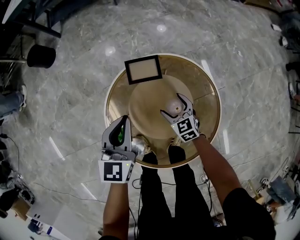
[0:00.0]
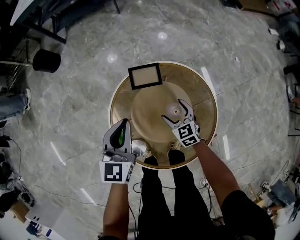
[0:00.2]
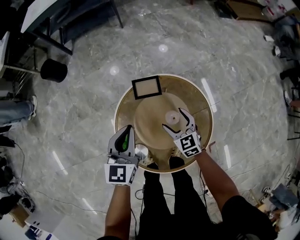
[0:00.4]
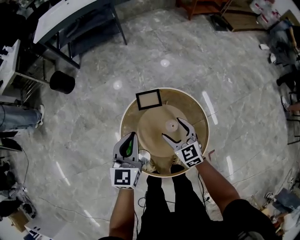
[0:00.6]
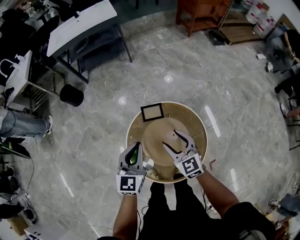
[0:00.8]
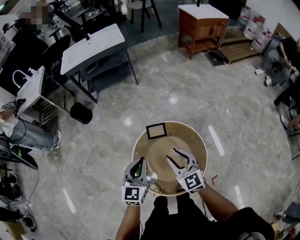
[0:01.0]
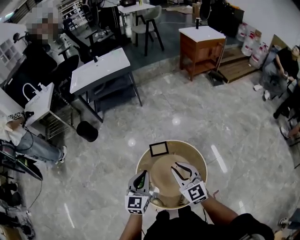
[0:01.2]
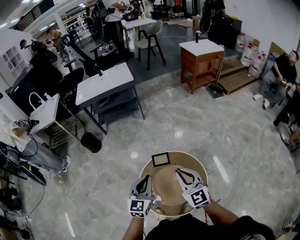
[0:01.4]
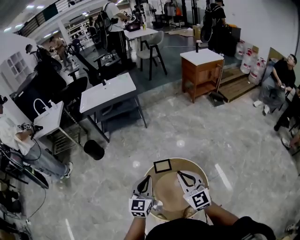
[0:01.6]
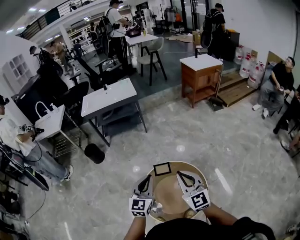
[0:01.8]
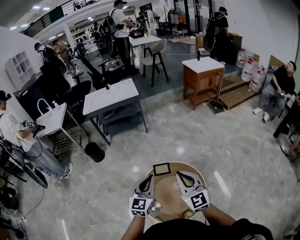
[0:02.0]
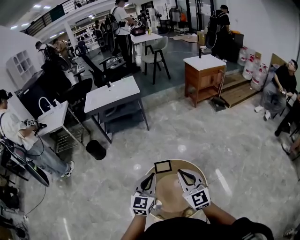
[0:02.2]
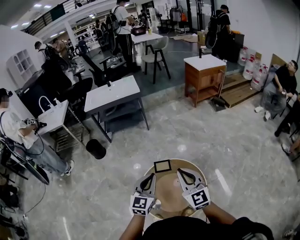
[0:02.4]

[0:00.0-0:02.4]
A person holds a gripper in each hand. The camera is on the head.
0:00.0 to 0:01.2: The right gripper is displaced upward by some 50 cm, tips its fingers upward by approximately 30 degrees, and closes its fingers; the left gripper heads upward, covering approximately 25 cm.
0:01.2 to 0:02.4: The grippers both shift upward by approximately 10 cm.

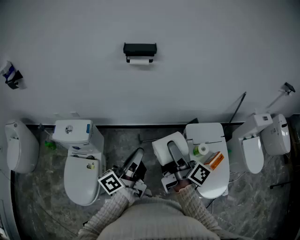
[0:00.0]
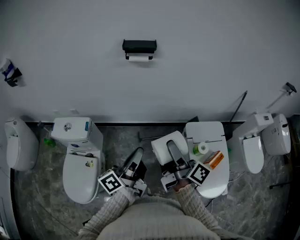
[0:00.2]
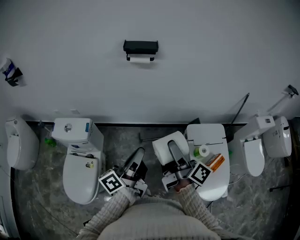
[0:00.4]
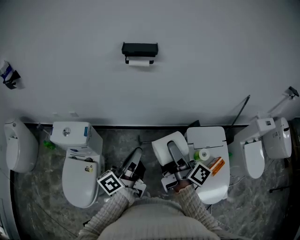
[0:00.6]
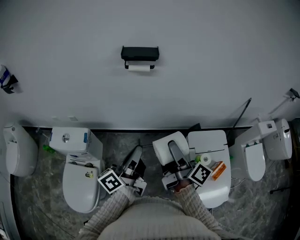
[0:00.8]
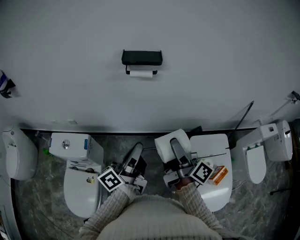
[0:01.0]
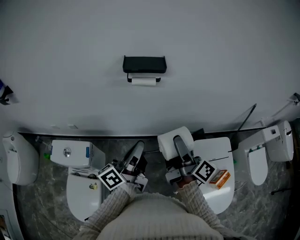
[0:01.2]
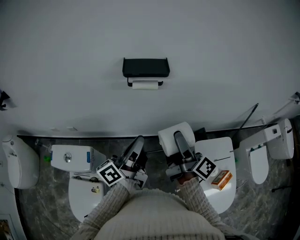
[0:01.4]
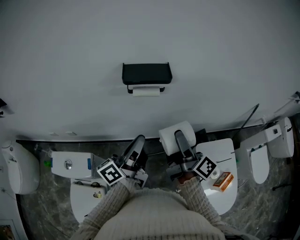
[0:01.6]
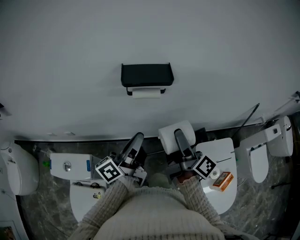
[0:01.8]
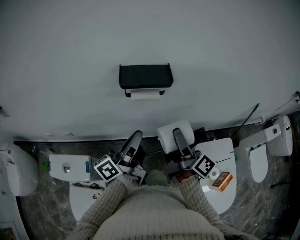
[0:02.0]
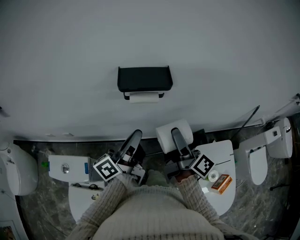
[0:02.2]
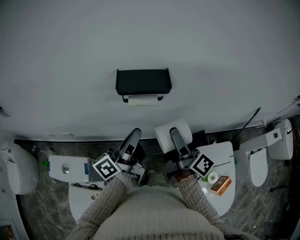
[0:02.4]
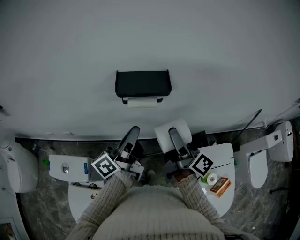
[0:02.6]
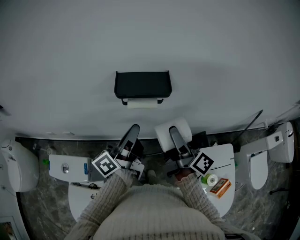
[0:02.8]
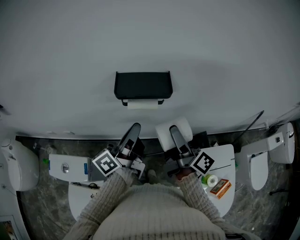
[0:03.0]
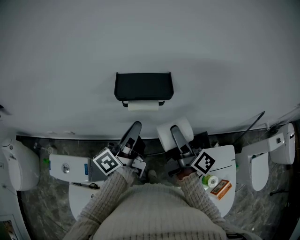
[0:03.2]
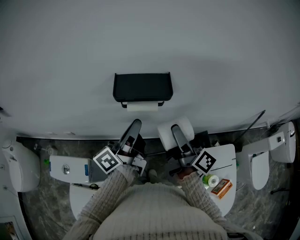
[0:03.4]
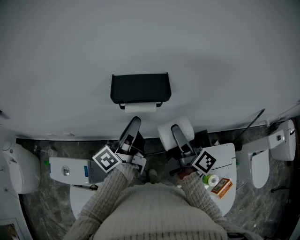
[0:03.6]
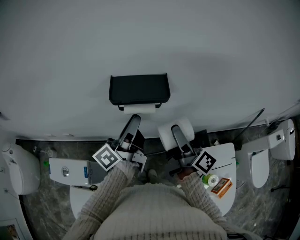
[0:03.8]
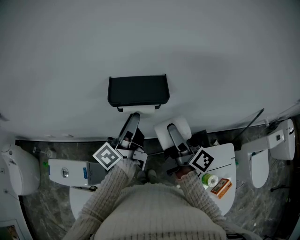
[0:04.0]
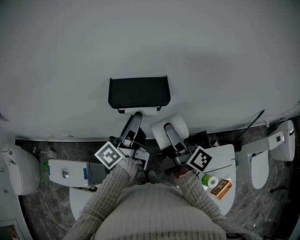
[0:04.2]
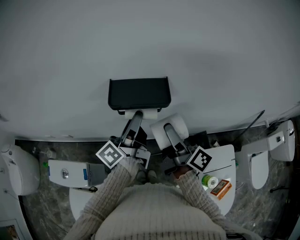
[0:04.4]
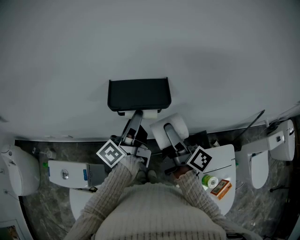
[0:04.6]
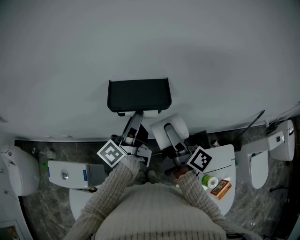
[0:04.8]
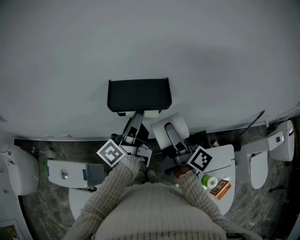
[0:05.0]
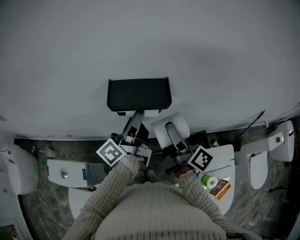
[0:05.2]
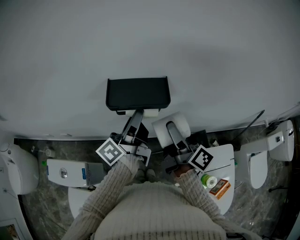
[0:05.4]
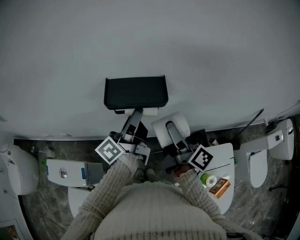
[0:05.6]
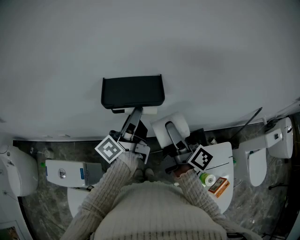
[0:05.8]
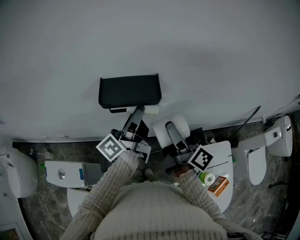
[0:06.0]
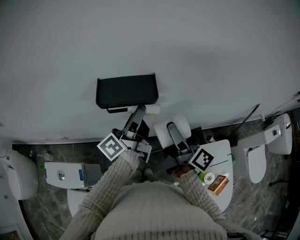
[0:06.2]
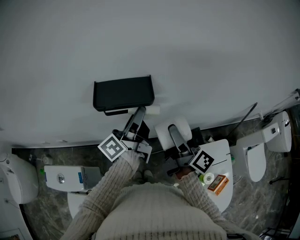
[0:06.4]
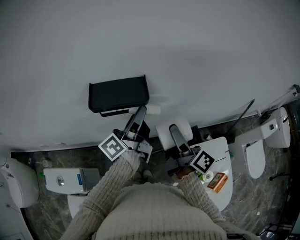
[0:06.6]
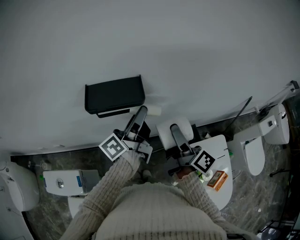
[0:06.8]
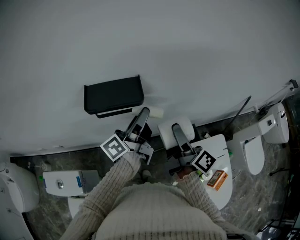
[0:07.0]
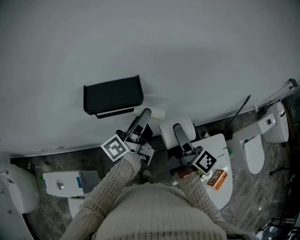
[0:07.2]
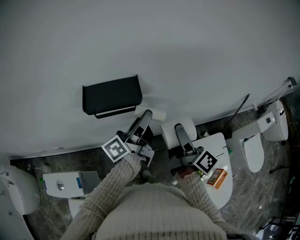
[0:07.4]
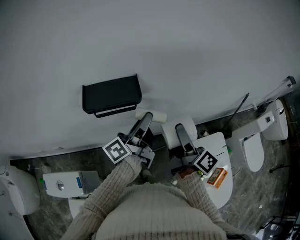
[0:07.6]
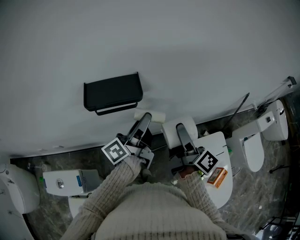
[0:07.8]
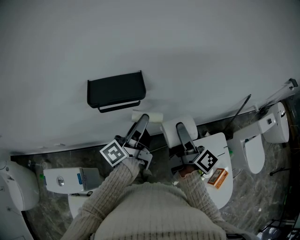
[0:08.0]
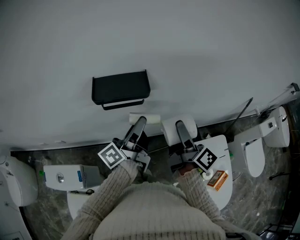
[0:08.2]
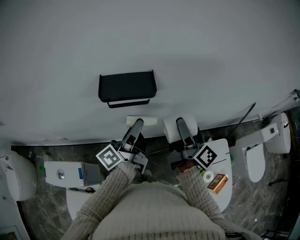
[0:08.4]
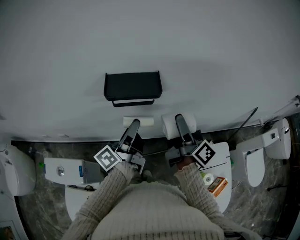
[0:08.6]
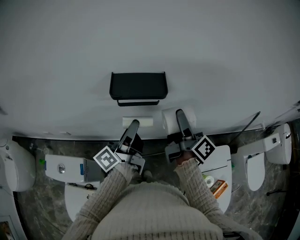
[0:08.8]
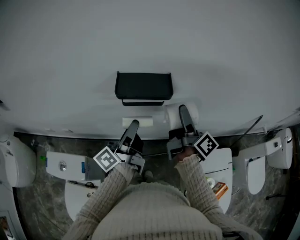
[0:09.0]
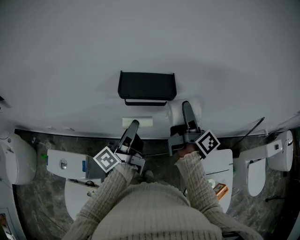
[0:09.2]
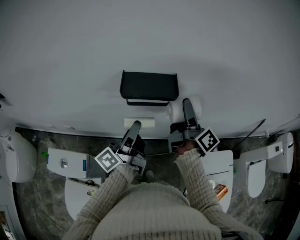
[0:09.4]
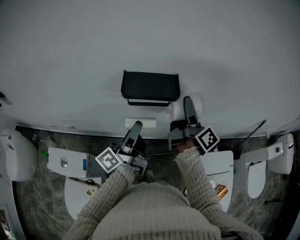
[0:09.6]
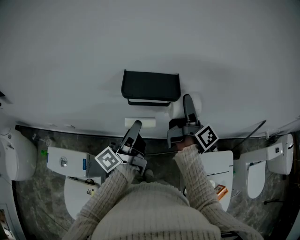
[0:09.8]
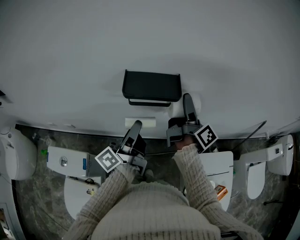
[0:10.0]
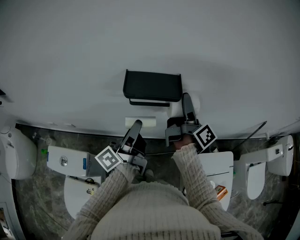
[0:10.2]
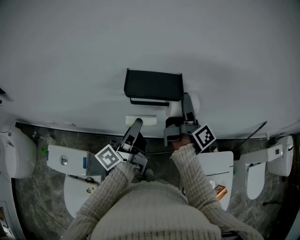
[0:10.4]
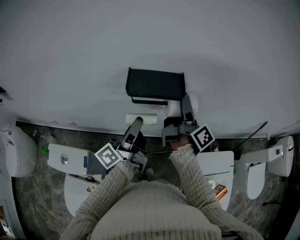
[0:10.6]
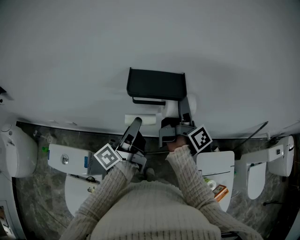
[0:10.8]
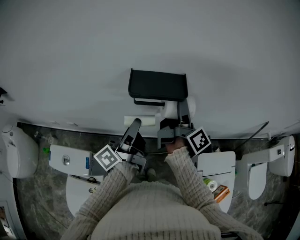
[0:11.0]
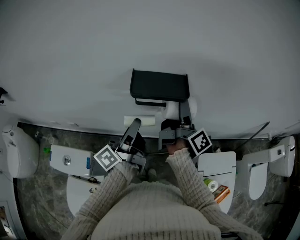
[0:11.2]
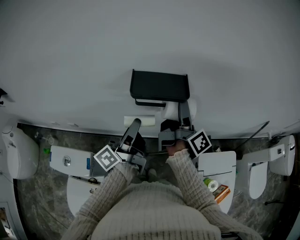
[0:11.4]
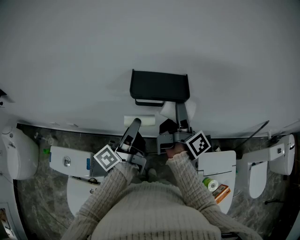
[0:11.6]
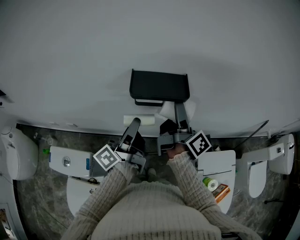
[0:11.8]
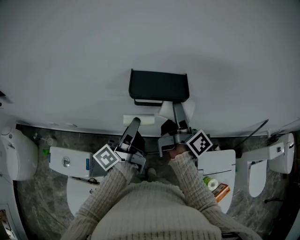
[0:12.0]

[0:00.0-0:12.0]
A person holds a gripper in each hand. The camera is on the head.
0:00.0 to 0:01.6: The grippers both shift forward by some 30 cm.
0:01.6 to 0:03.0: Both grippers move forward, some 10 cm.
0:03.0 to 0:04.4: The left gripper goes approximately 5 cm forward, and opens up.
0:04.4 to 0:06.0: The grippers stay close to where they were, moving slightly.
0:06.0 to 0:07.6: Both grippers move to the right, about 10 cm.
0:07.6 to 0:09.0: The right gripper moves to the left and forward, about 10 cm, while the left gripper shifts about 15 cm to the left and backward.
0:09.0 to 0:10.4: There are only small adjustments of the grippers.
0:10.4 to 0:12.0: The right gripper moves about 5 cm.

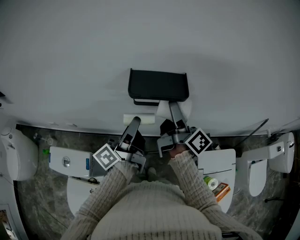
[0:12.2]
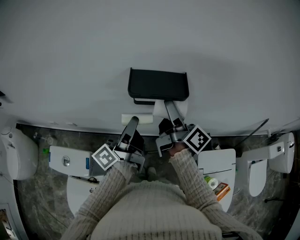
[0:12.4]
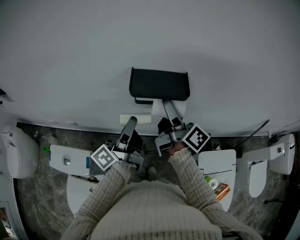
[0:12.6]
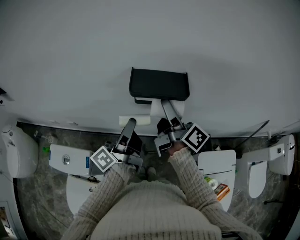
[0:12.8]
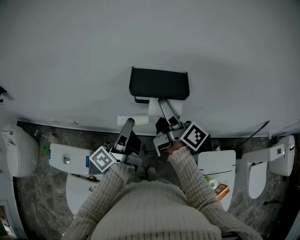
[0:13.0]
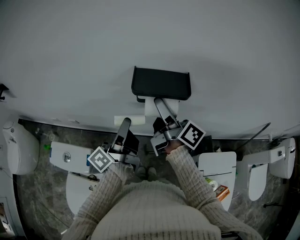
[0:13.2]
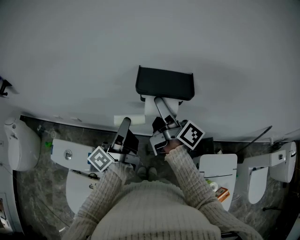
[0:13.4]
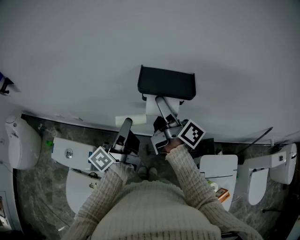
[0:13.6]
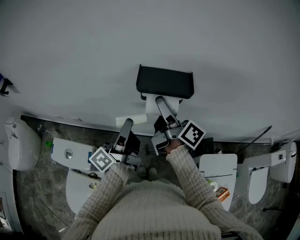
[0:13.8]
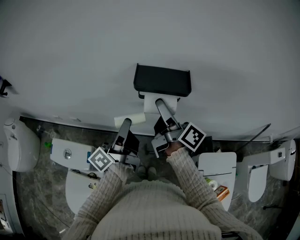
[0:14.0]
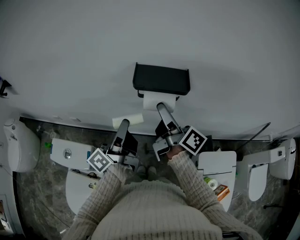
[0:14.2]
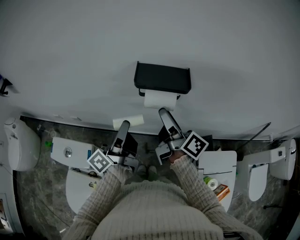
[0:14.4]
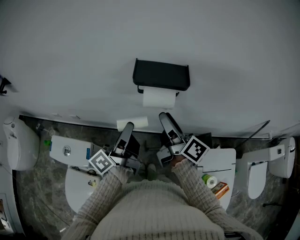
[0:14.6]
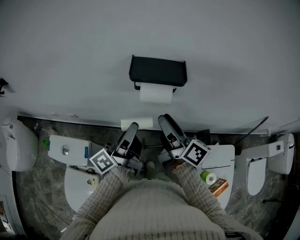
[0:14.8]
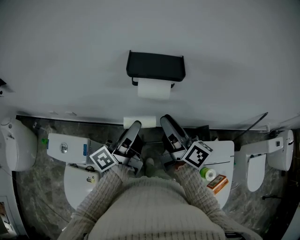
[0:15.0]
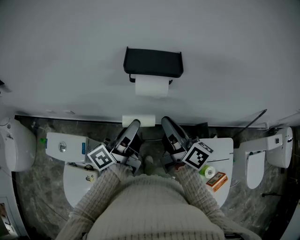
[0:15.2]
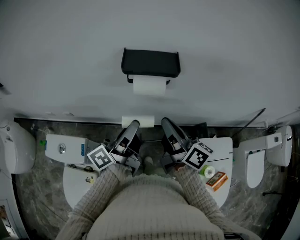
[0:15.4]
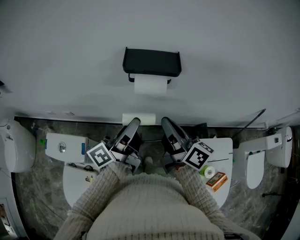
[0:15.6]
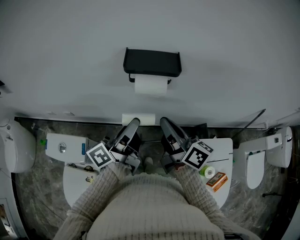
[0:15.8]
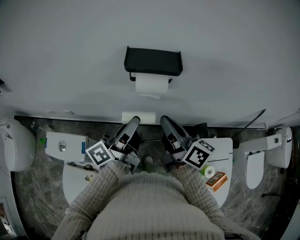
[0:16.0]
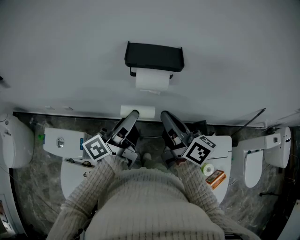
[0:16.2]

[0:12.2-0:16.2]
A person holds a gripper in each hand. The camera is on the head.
0:12.2 to 0:13.6: The right gripper heads to the left, covering about 5 cm, while the left gripper moves roughly 5 cm.
0:13.6 to 0:14.8: The left gripper shifts by approximately 5 cm, while the right gripper heads backward, covering roughly 10 cm, and closes its fingers.
0:14.8 to 0:16.2: The right gripper closes its fingers.

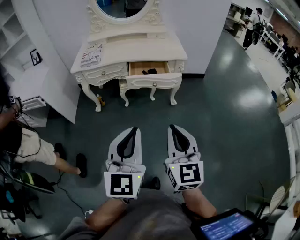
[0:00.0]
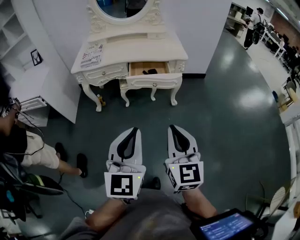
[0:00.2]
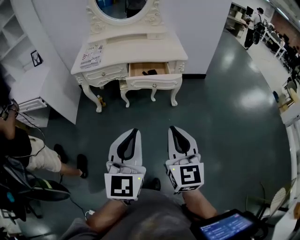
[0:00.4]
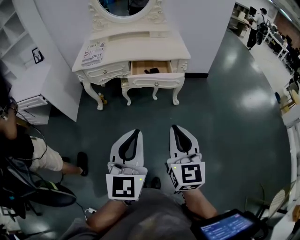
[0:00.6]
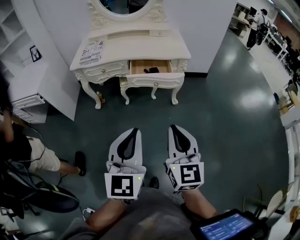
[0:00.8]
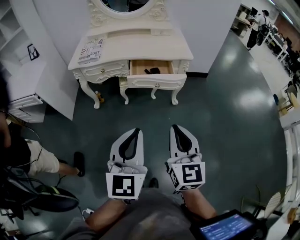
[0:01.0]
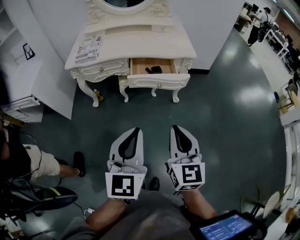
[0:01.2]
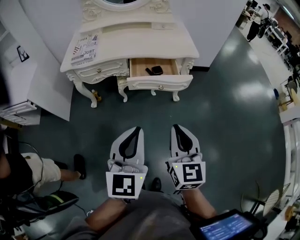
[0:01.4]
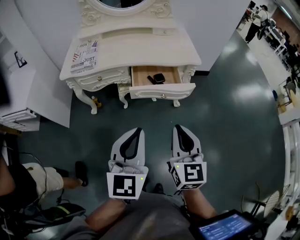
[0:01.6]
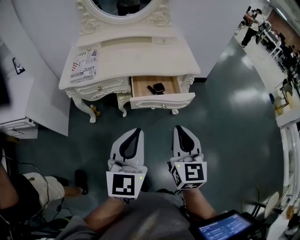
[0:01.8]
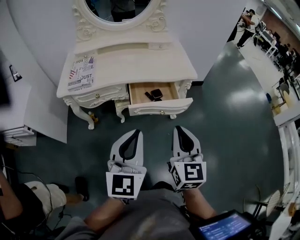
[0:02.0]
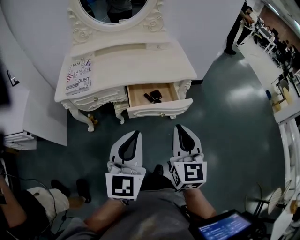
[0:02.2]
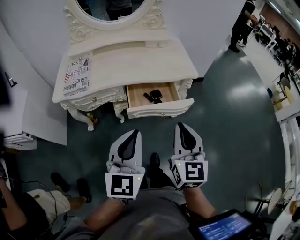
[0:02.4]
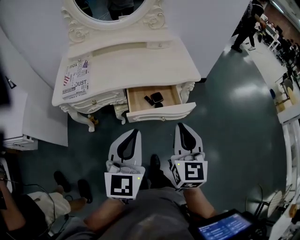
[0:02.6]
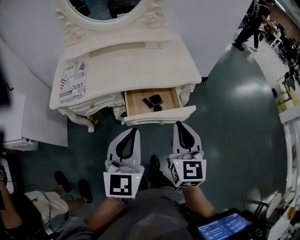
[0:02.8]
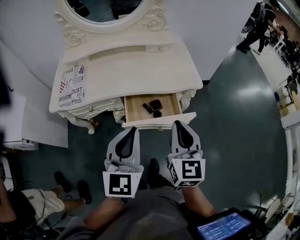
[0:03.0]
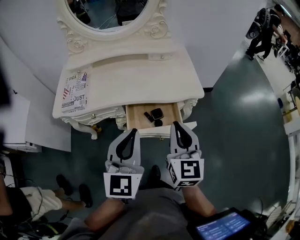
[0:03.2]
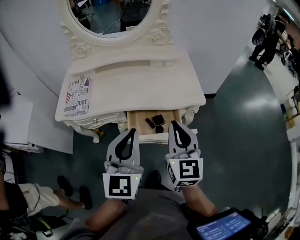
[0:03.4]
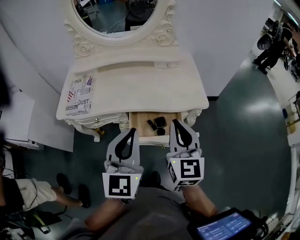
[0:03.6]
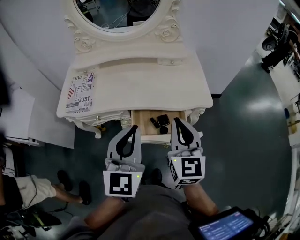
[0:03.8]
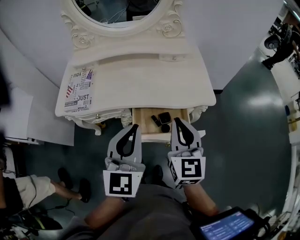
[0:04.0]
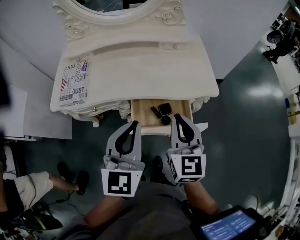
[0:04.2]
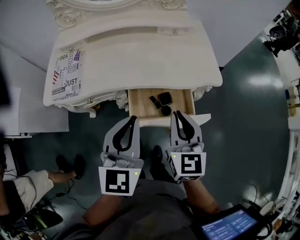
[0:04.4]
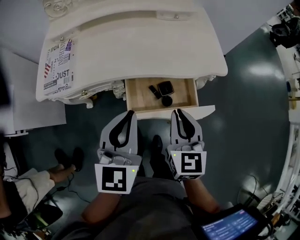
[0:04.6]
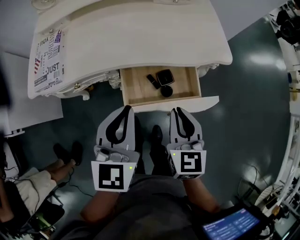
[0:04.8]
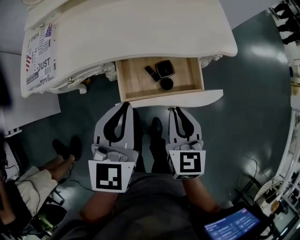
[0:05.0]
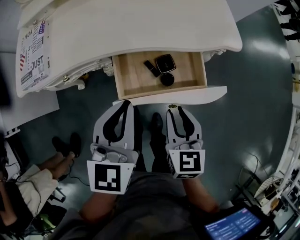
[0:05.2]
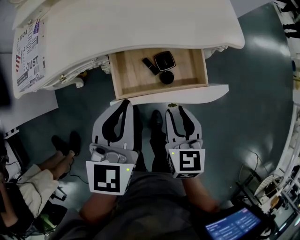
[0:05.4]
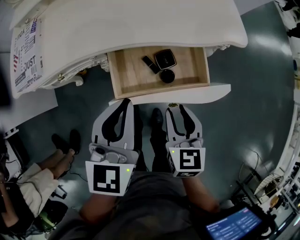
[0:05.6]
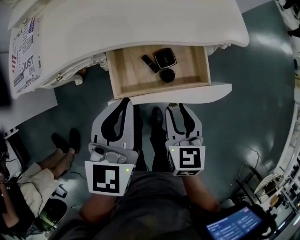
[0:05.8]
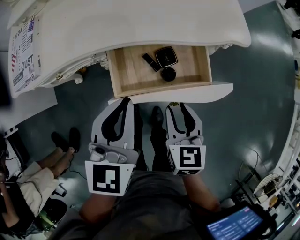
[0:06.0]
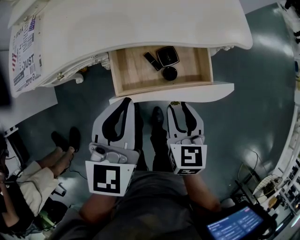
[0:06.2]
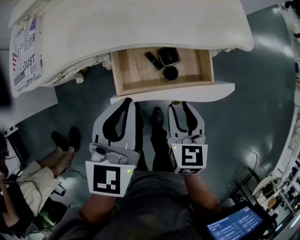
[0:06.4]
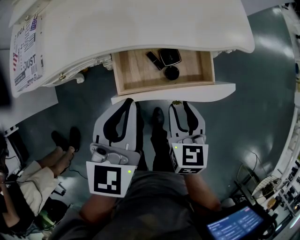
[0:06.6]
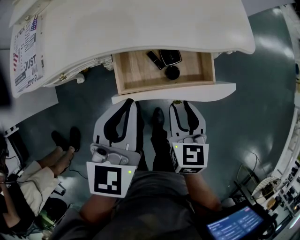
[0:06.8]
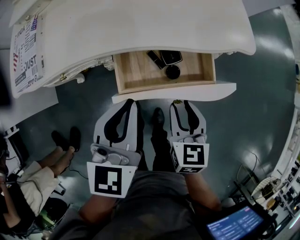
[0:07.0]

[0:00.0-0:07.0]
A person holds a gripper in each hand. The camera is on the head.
0:00.0 to 0:01.4: Both grippers move forward, about 15 cm.
0:01.4 to 0:02.8: Both grippers move forward, about 20 cm.
0:02.8 to 0:04.2: Both grippers travel together forward, some 15 cm.
0:04.2 to 0:05.6: Both grippers move downward, roughly 20 cm. The right gripper changes its angle by about 30 degrees, and opens up.
0:05.6 to 0:07.0: The grippers stay close to where they were, moving slightly.
